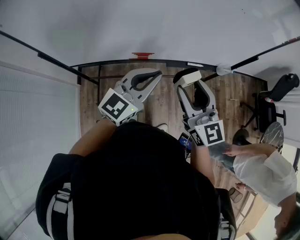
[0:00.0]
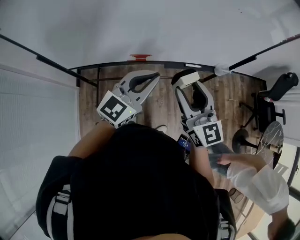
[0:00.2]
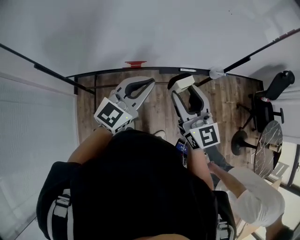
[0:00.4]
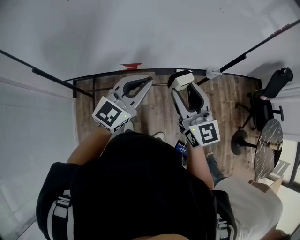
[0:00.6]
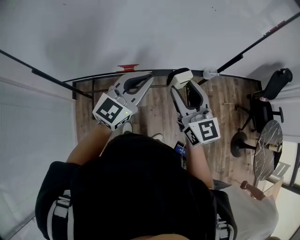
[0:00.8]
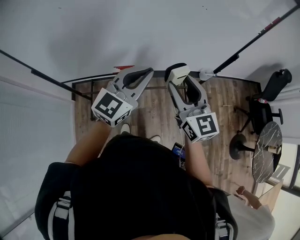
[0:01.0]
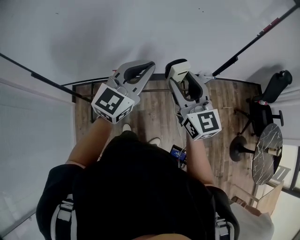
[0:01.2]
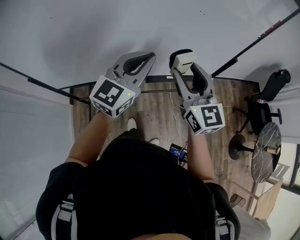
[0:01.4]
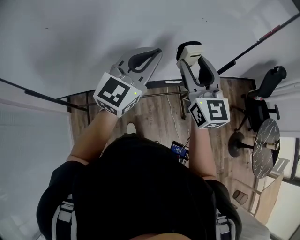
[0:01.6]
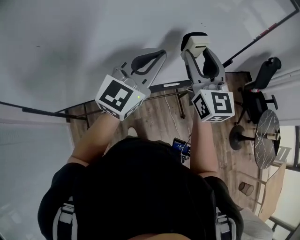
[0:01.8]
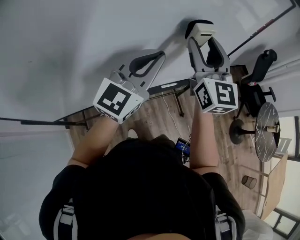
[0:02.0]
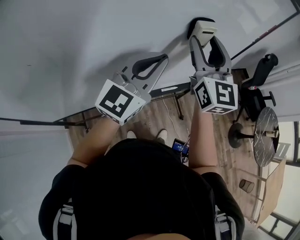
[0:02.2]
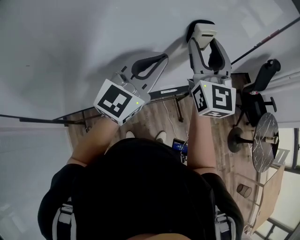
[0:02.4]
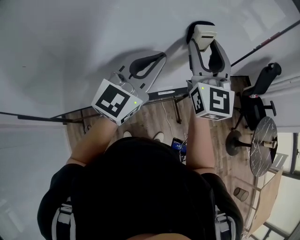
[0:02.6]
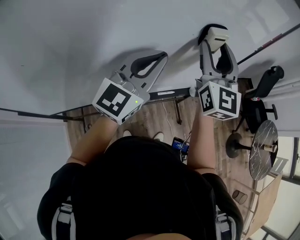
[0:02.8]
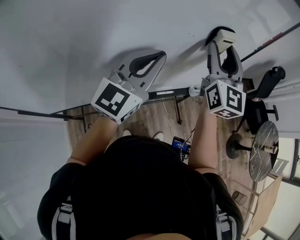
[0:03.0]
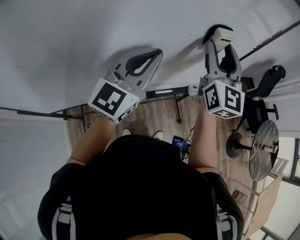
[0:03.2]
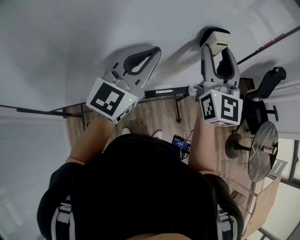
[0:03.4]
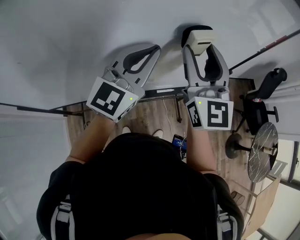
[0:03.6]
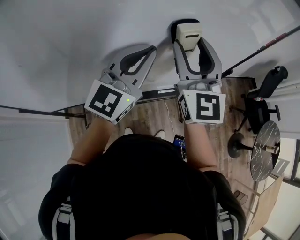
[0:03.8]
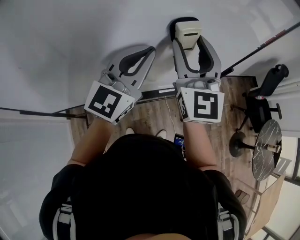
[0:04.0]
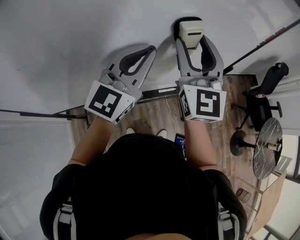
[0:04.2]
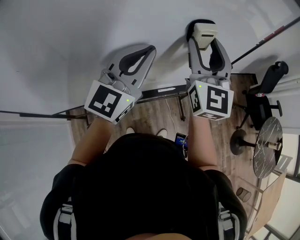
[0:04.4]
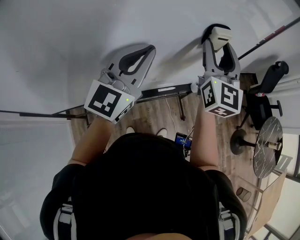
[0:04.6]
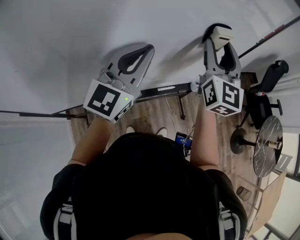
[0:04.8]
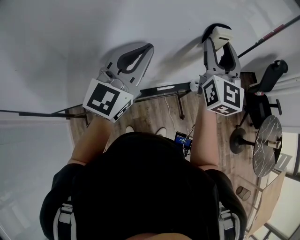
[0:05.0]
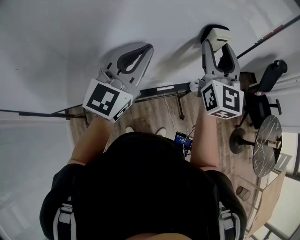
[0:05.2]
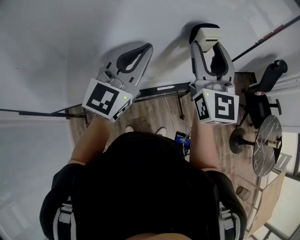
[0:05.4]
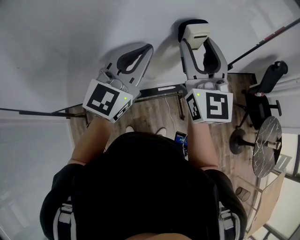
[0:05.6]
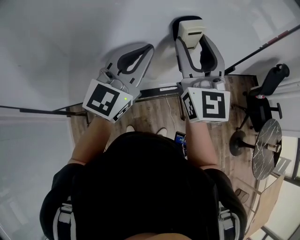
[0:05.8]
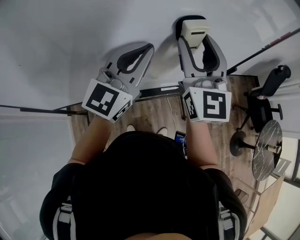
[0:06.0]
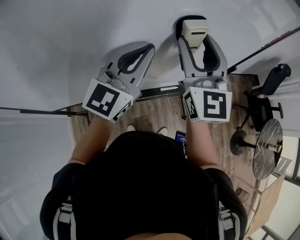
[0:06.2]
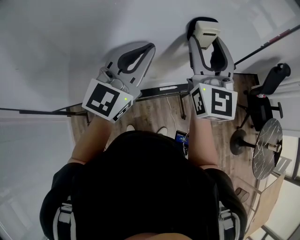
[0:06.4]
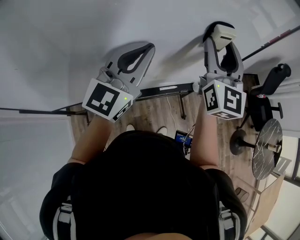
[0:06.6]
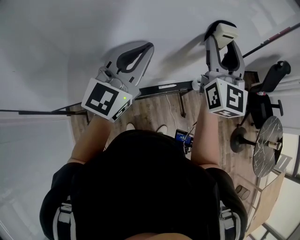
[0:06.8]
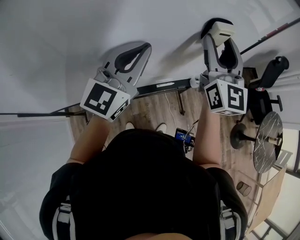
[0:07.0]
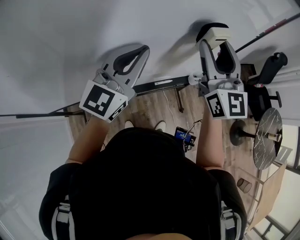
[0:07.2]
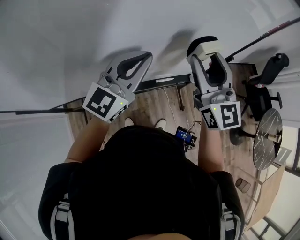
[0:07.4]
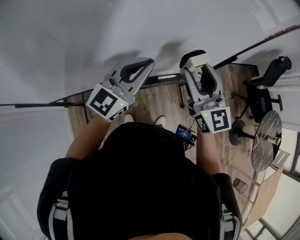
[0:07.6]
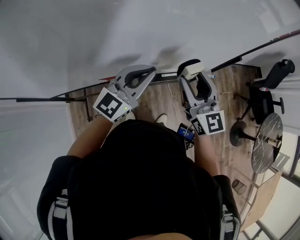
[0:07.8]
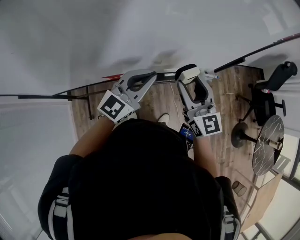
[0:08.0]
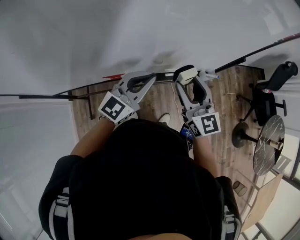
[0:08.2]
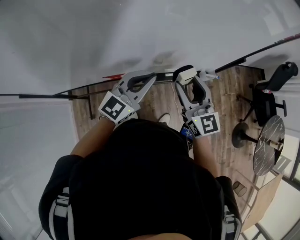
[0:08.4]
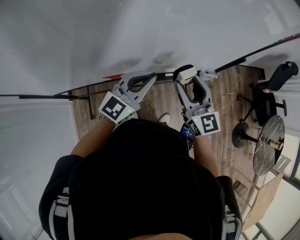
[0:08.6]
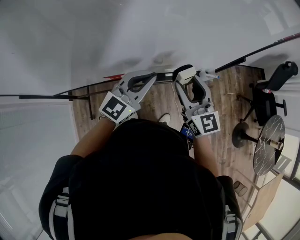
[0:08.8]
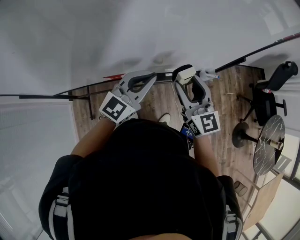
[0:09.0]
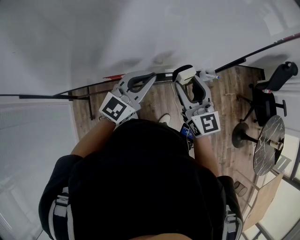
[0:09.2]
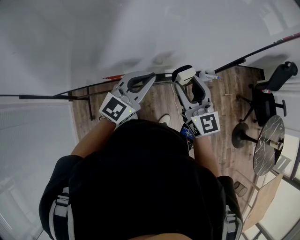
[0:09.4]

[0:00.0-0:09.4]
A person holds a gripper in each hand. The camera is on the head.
0:00.0 to 0:01.6: The grippers both shift forward, upward and to the right by some 20 cm.
0:01.6 to 0:03.2: The left gripper shifts about 10 cm forward. The right gripper is displaced forward and to the right by roughly 20 cm, and changes its angle by roughly 20 degrees.
0:03.2 to 0:04.8: The right gripper goes to the left and returns, roughly 10 cm each way.
0:04.8 to 0:06.2: The right gripper goes roughly 10 cm to the left and backward.
0:06.2 to 0:07.8: The right gripper shifts about 20 cm downward and backward, and changes its angle by about 20 degrees, while the left gripper travels downward by some 15 cm.
0:07.8 to 0:09.4: There are only small adjustments of the grippers.

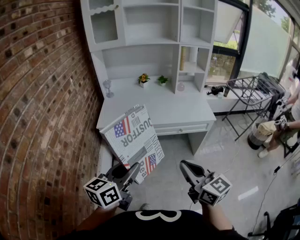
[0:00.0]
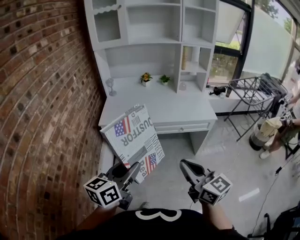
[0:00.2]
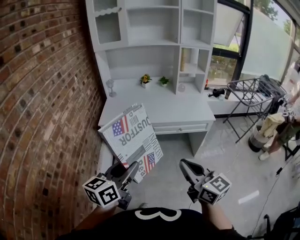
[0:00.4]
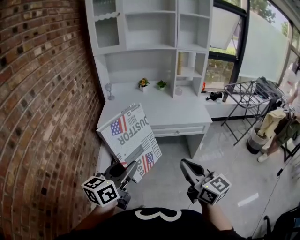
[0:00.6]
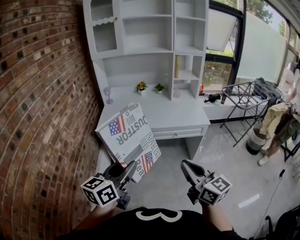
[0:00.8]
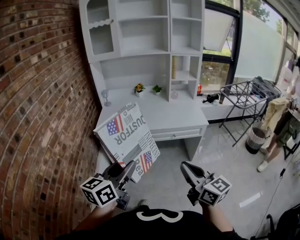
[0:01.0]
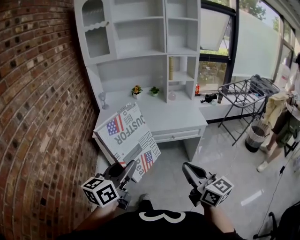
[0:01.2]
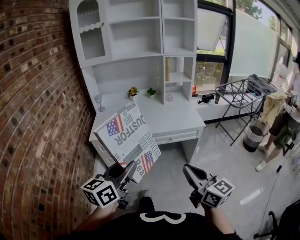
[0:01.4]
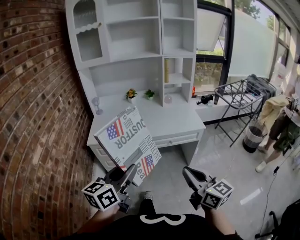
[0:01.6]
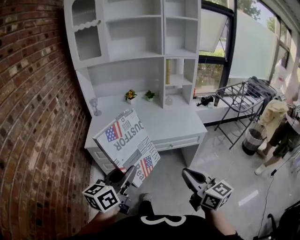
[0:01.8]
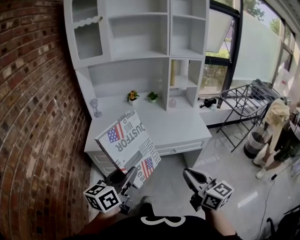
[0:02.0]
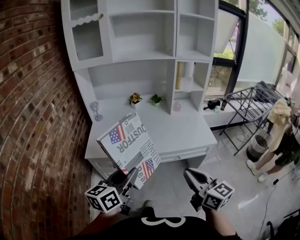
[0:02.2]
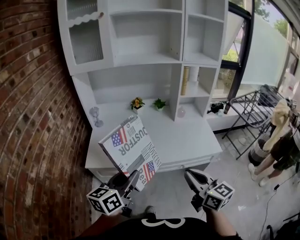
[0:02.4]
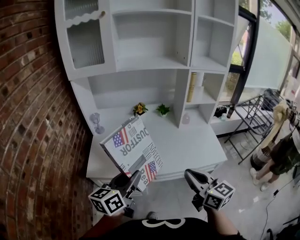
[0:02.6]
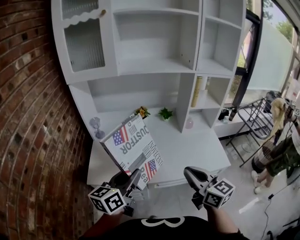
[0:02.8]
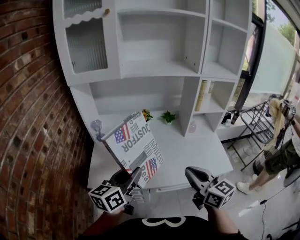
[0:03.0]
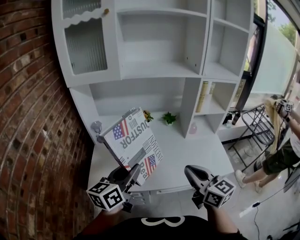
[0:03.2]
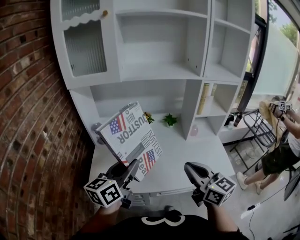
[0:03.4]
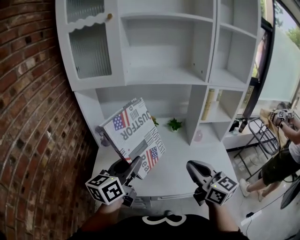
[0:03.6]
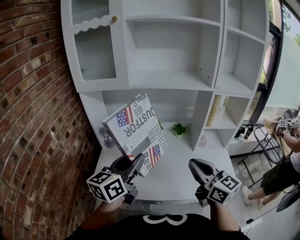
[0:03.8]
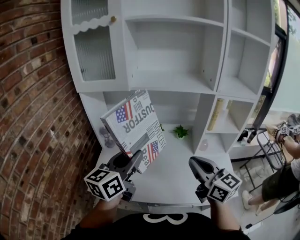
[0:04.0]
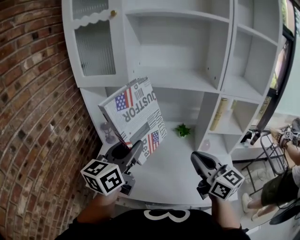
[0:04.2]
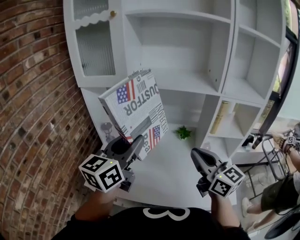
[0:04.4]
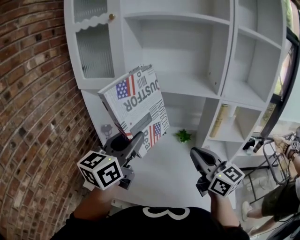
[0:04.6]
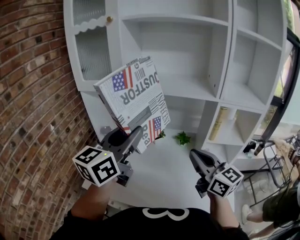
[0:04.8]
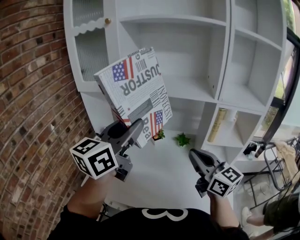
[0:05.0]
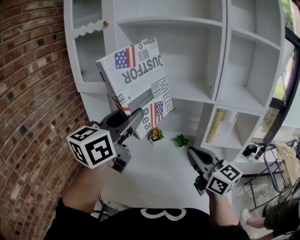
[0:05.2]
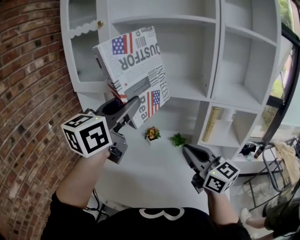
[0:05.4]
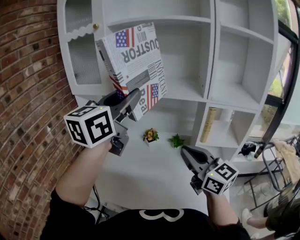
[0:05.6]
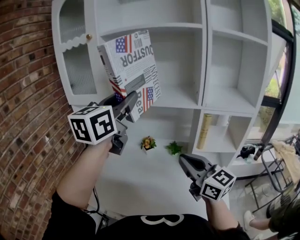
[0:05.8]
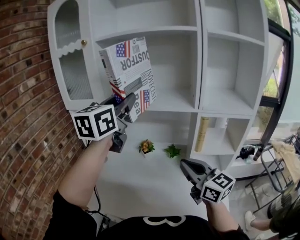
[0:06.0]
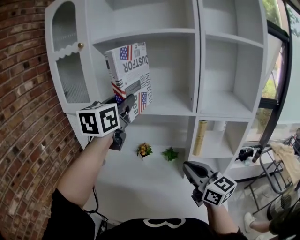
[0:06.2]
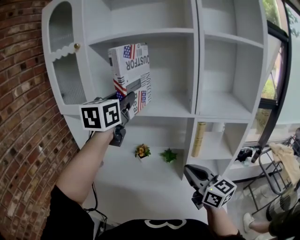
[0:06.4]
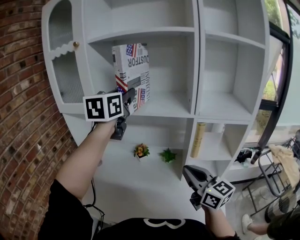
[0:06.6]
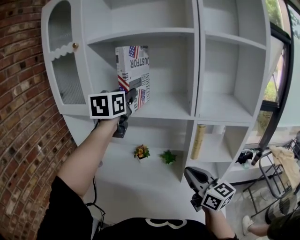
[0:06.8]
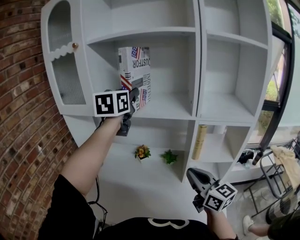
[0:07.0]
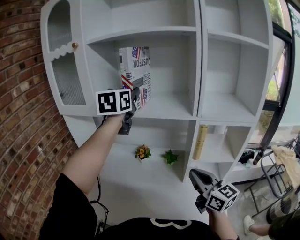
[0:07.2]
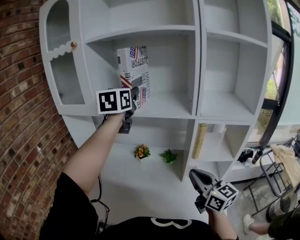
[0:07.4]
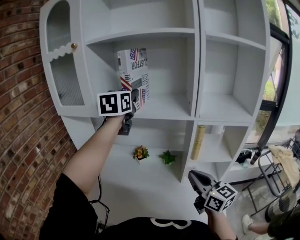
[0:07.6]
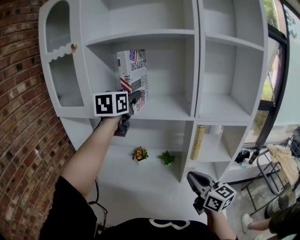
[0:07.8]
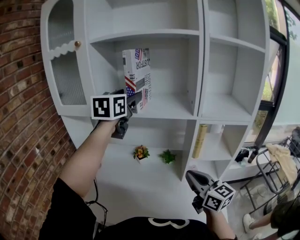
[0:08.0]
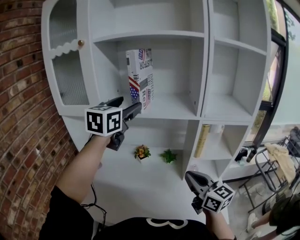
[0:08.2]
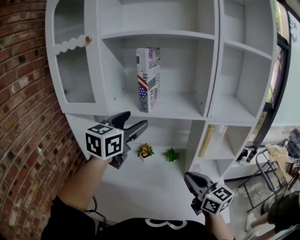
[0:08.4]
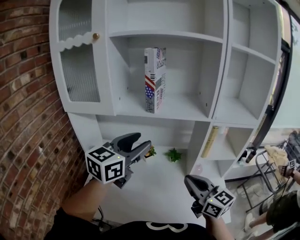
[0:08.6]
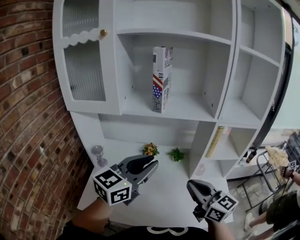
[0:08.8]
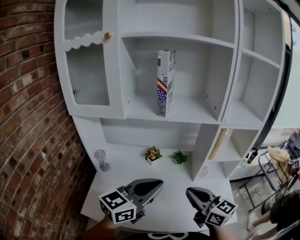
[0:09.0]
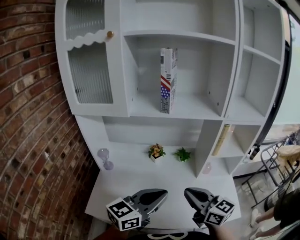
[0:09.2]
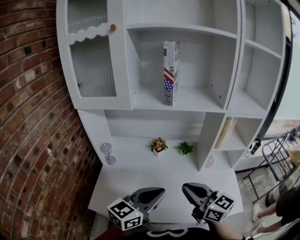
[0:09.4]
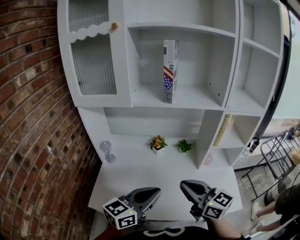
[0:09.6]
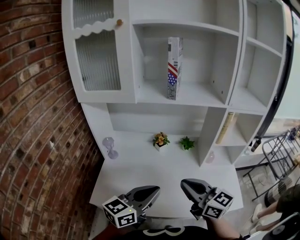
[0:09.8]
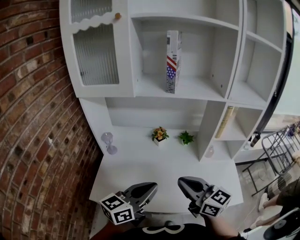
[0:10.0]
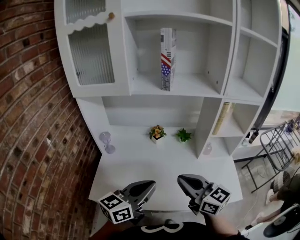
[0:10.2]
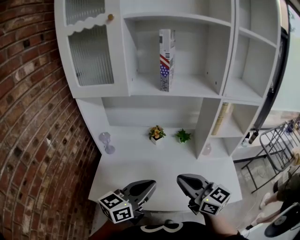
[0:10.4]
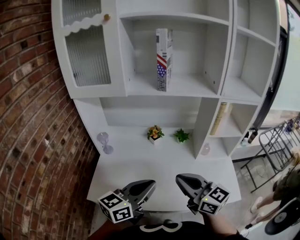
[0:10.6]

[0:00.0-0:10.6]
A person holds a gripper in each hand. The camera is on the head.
0:00.0 to 0:01.6: The two grippers go approximately 5 cm to the right.
0:01.6 to 0:03.0: The grippers both shift forward by roughly 40 cm.
0:03.0 to 0:04.6: The right gripper shifts roughly 20 cm forward, upward and to the right, and rotates about 20 degrees. Meanwhile the left gripper travels upward, forward and to the right by about 20 cm, and rotates some 20 degrees.
0:04.6 to 0:06.0: The left gripper heads upward, forward and to the right, covering some 20 cm. Meanwhile the right gripper shifts some 5 cm to the right.
0:06.0 to 0:07.6: The left gripper moves forward, about 15 cm, while the right gripper goes some 5 cm to the right.
0:07.6 to 0:09.0: The right gripper shifts approximately 15 cm to the left and backward, while the left gripper is displaced backward and downward by approximately 35 cm, swivels roughly 40 degrees, and closes.
0:09.0 to 0:10.6: The right gripper heads to the left, covering some 5 cm; the left gripper heads downward and backward, covering roughly 10 cm.

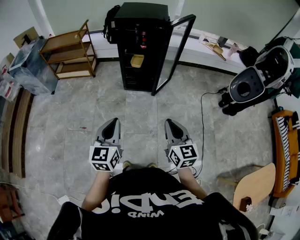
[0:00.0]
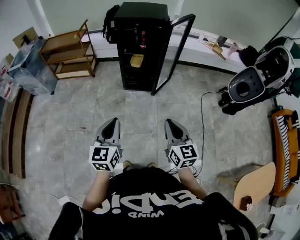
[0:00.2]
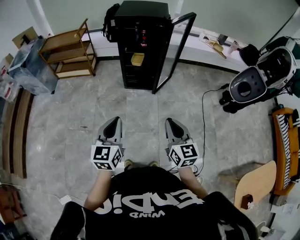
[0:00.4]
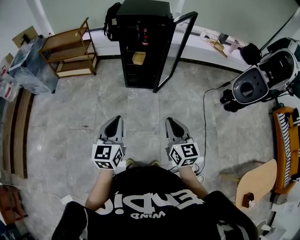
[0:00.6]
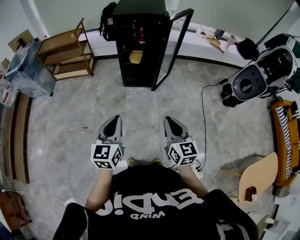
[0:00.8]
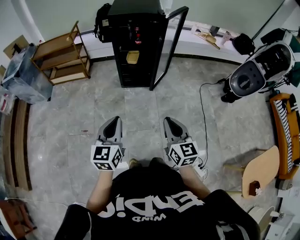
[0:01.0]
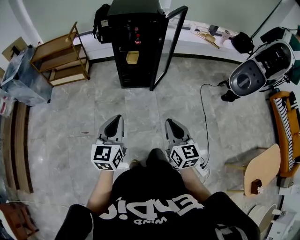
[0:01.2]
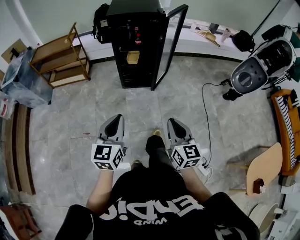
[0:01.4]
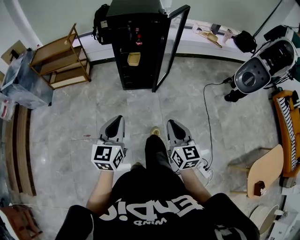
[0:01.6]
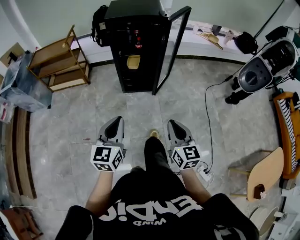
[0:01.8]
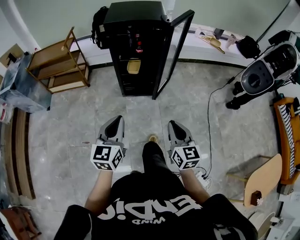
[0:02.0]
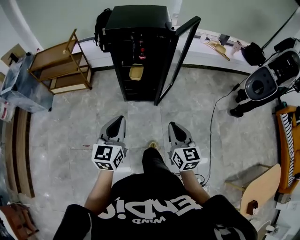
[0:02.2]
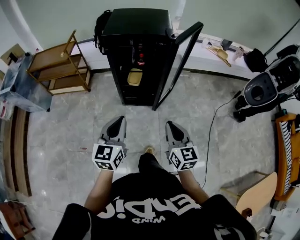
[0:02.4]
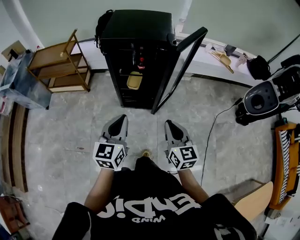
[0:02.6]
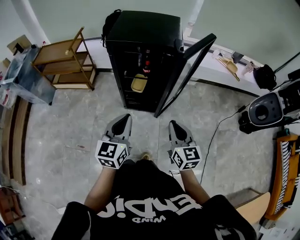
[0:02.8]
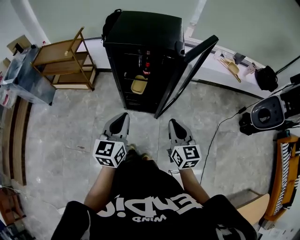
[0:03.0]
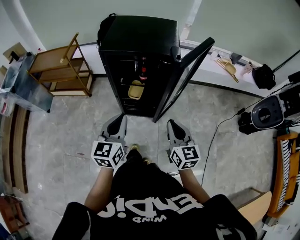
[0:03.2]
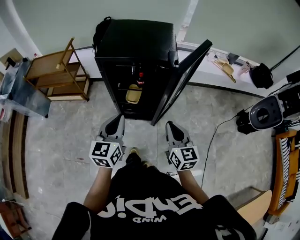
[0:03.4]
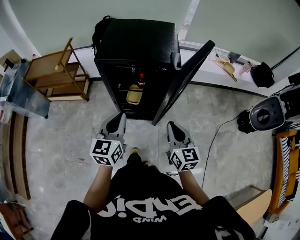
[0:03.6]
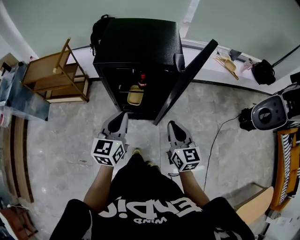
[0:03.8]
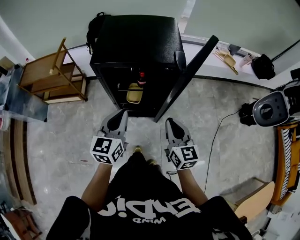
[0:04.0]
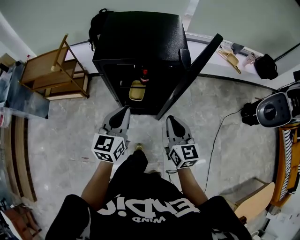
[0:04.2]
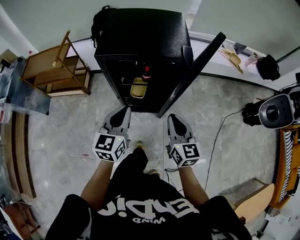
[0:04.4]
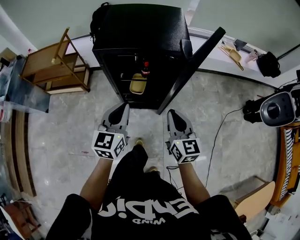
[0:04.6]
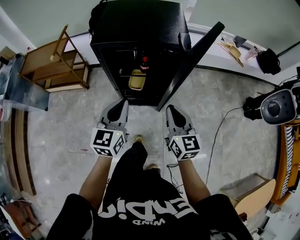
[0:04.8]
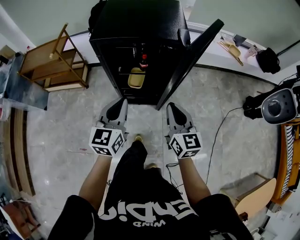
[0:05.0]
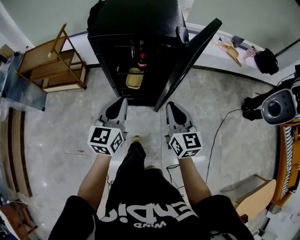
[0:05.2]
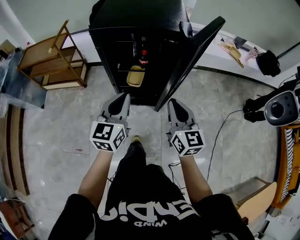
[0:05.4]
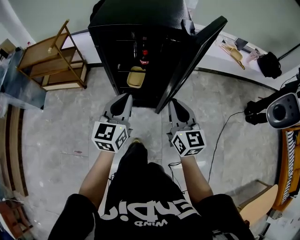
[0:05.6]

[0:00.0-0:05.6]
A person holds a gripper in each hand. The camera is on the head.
0:00.0 to 0:01.4: The right gripper changes place by about 5 cm.
0:01.4 to 0:02.8: Both grippers move forward, some 35 cm.
0:02.8 to 0:04.2: Both grippers travel together forward, approximately 15 cm.
0:04.2 to 0:05.6: Both grippers move downward, roughly 5 cm.
